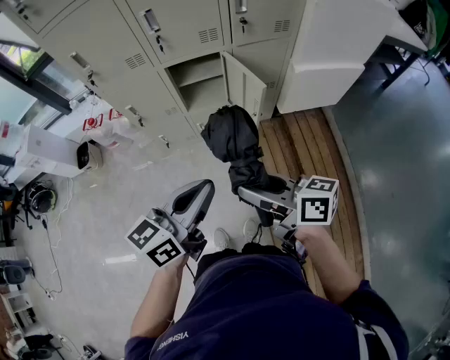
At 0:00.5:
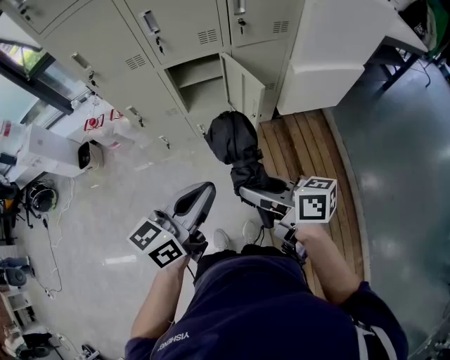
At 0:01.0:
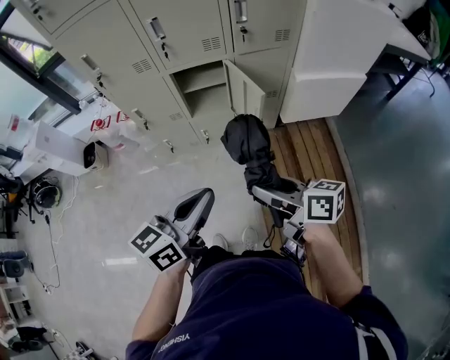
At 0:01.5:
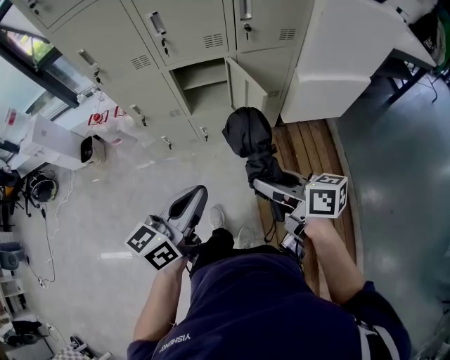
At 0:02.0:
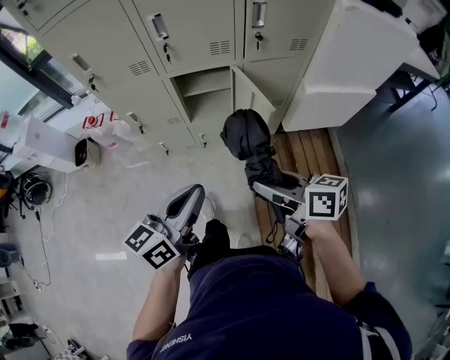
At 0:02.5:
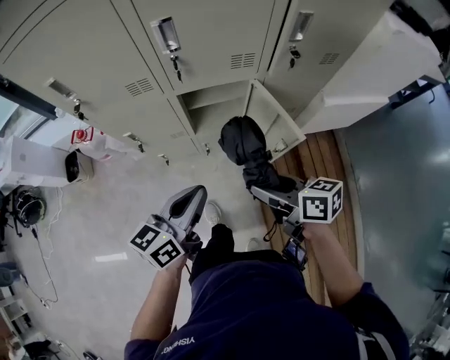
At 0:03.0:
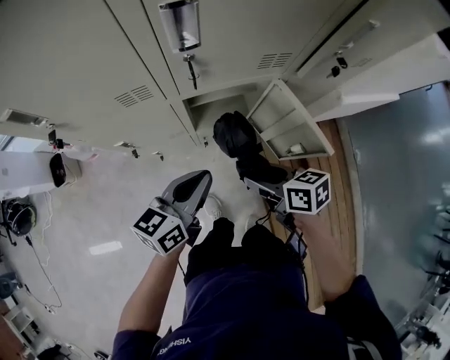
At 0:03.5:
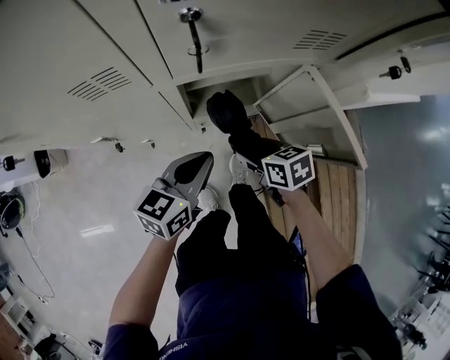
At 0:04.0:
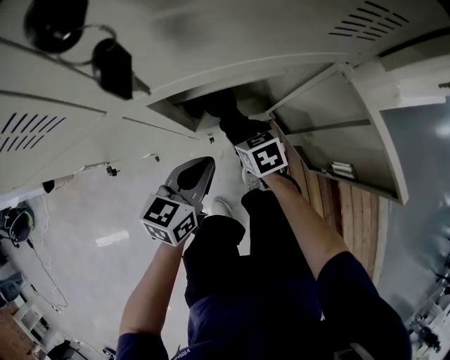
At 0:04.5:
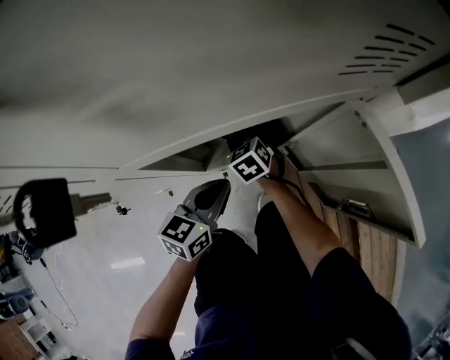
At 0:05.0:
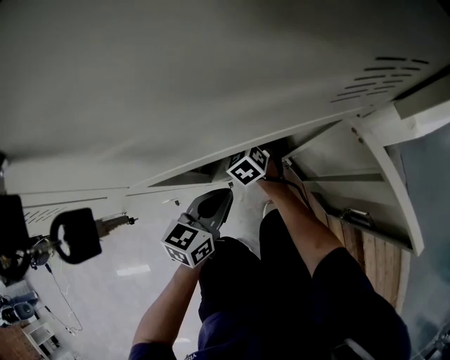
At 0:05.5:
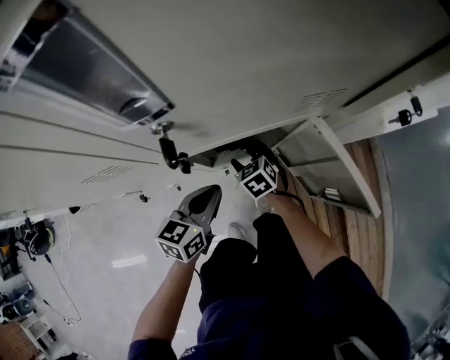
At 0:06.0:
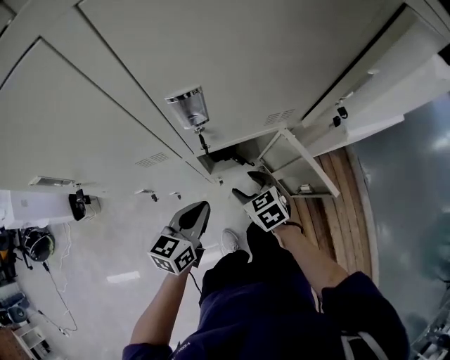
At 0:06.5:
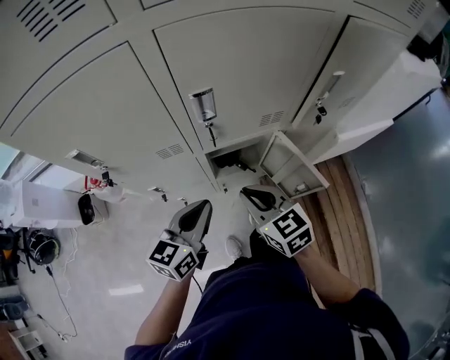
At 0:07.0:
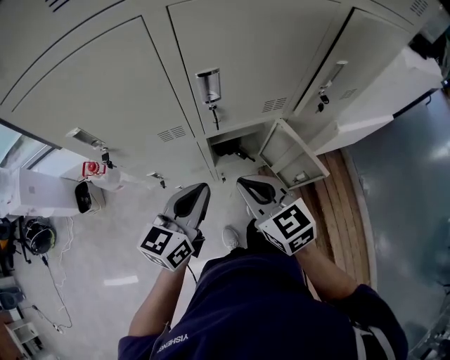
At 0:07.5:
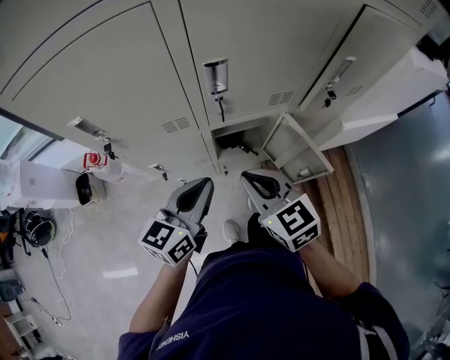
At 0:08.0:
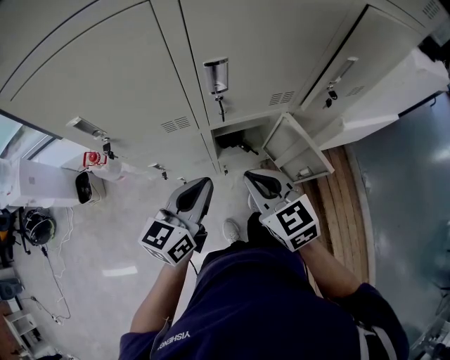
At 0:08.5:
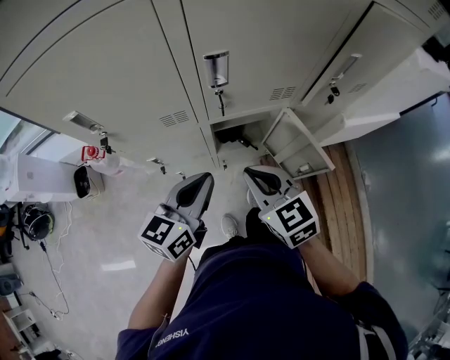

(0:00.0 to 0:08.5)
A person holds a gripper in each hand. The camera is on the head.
0:00.0 - 0:02.0: The right gripper travels forward and to the right by roughly 10 cm, while the left gripper shifts about 10 cm forward.
0:02.0 - 0:04.0: The two grippers go roughly 60 cm downward and forward. The left gripper turns by about 20 degrees; the right gripper tips its fingers downward by about 30 degrees.
0:04.0 - 0:06.5: Both grippers travel together upward, some 40 cm. The right gripper turns by some 30 degrees, and closes.
0:06.5 - 0:08.5: The grippers stay close to where they were, moving slightly.

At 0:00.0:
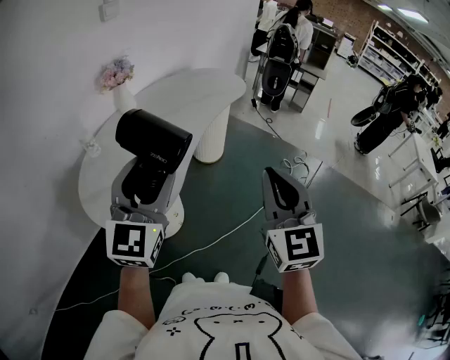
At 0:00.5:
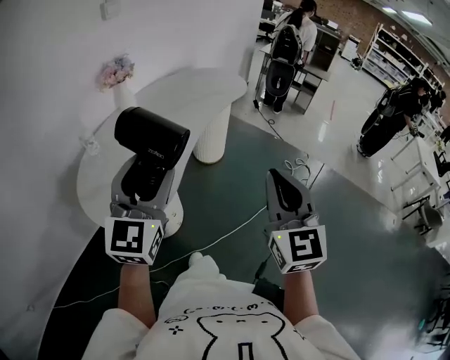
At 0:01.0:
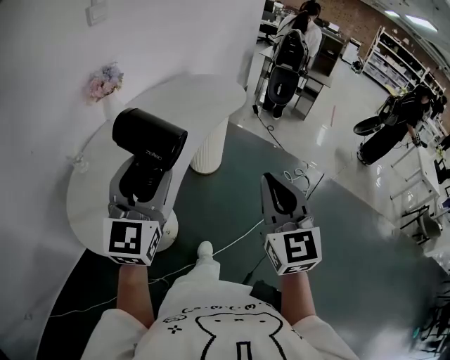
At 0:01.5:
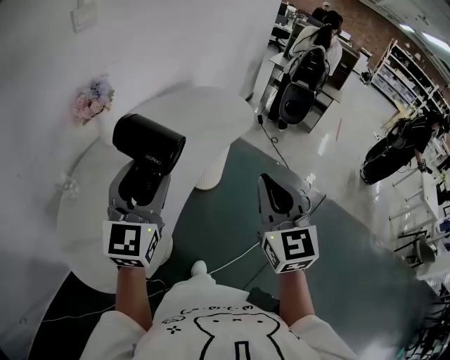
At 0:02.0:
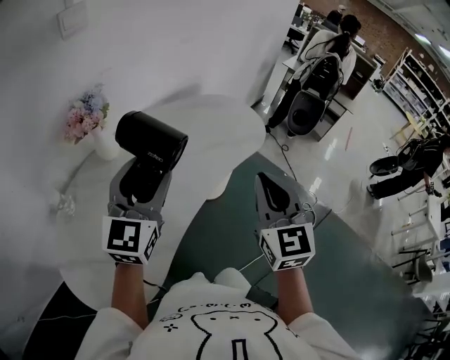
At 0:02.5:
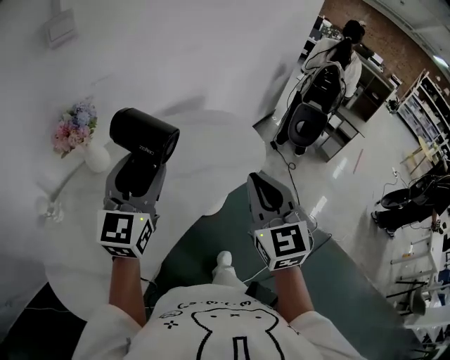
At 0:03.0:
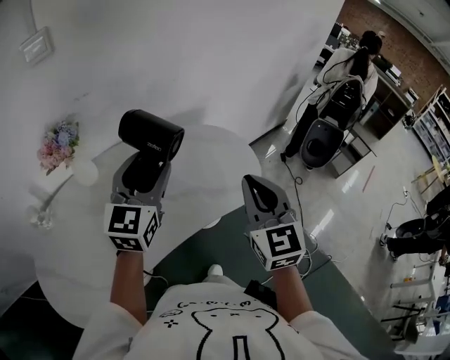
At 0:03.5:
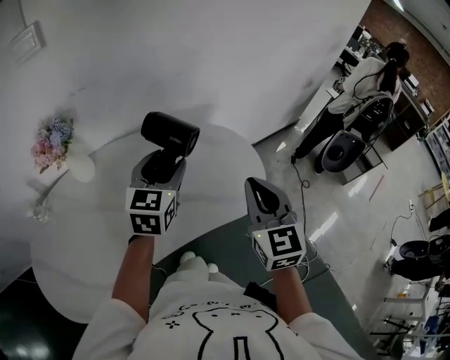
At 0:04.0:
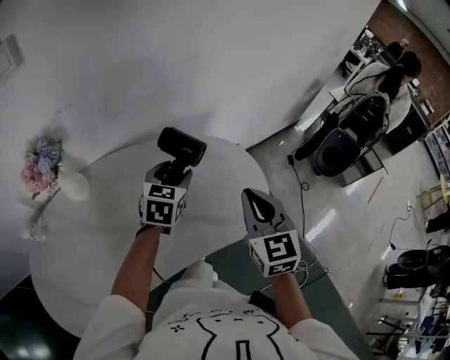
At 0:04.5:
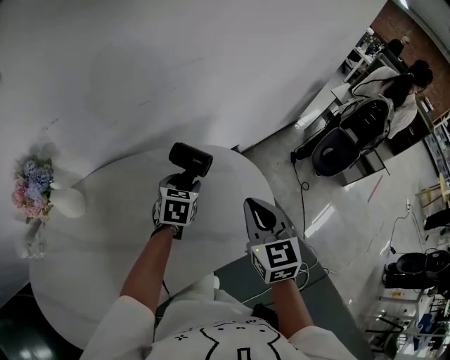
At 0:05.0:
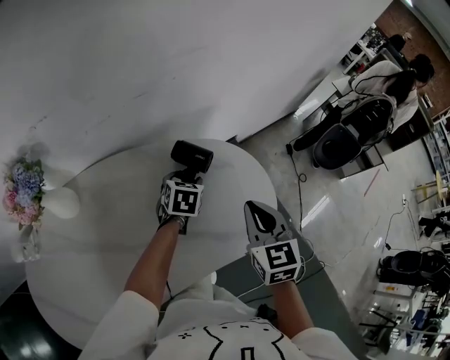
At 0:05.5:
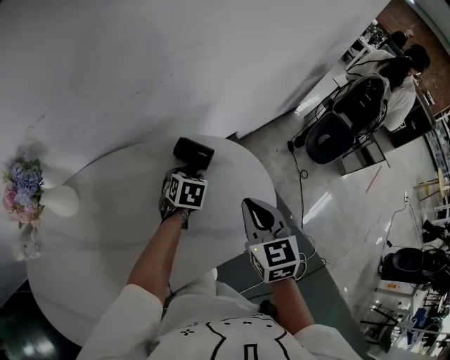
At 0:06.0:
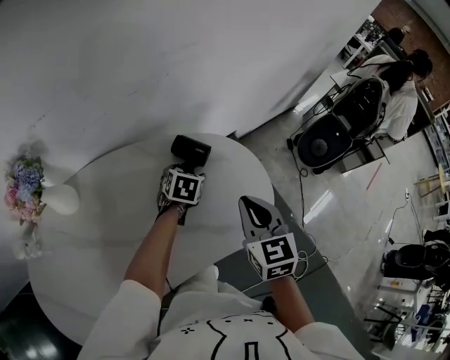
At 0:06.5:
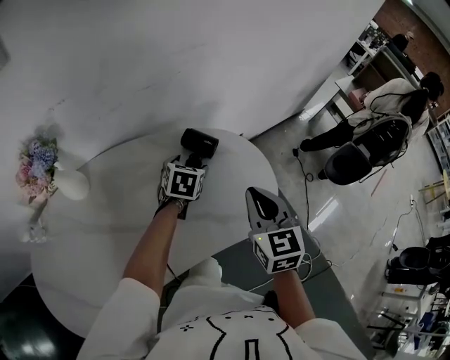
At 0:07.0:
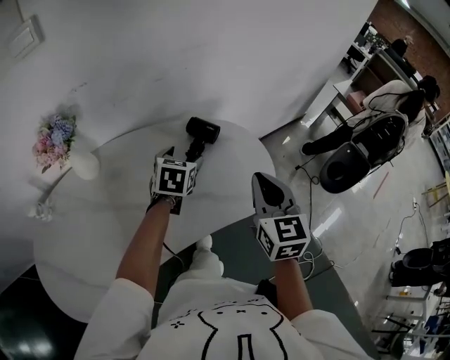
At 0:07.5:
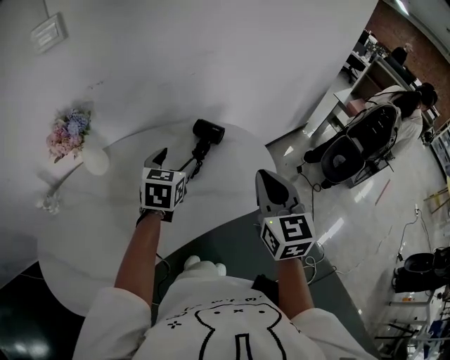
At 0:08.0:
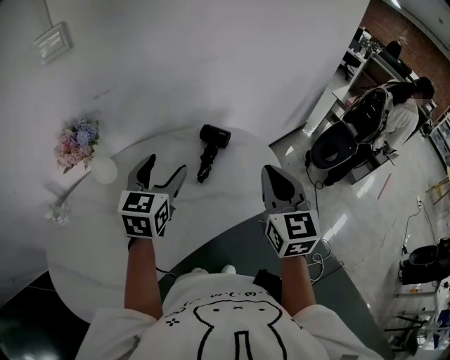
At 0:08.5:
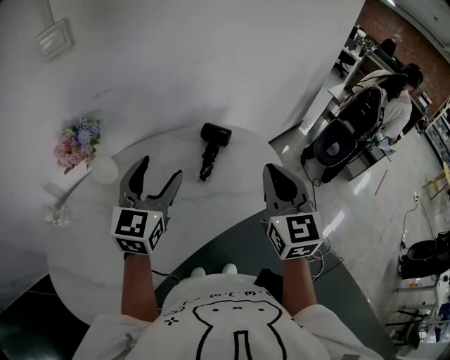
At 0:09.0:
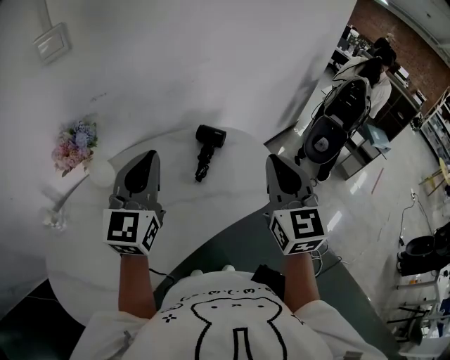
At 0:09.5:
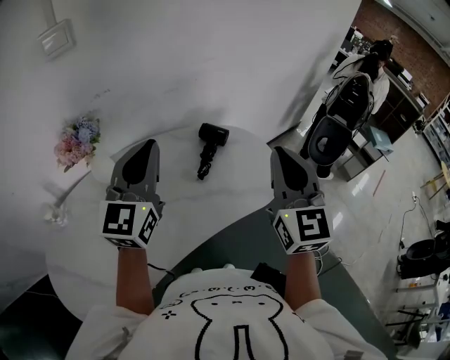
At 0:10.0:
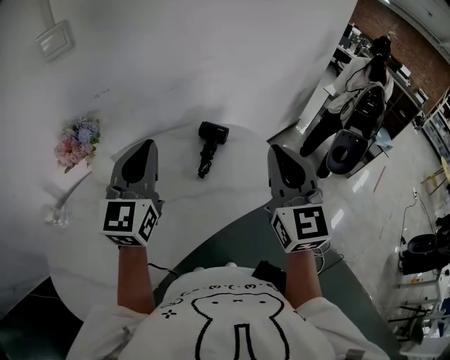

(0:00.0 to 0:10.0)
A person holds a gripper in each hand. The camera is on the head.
0:00.0 - 0:02.0: Both grippers are carried forward, some 40 cm.
0:02.0 - 0:04.0: The right gripper heads forward, covering roughly 35 cm, and turns by approximately 20 degrees. Meanwhile the left gripper is displaced forward, downward and to the right by approximately 40 cm, and tips its fingers downward by some 30 degrees.
0:04.0 - 0:06.0: The right gripper travels downward by approximately 5 cm. Meanwhile the left gripper shifts roughly 15 cm downward and forward, and rotates approximately 20 degrees.
0:06.0 - 0:08.0: The right gripper travels upward and backward by some 20 cm. Meanwhile the left gripper shifts approximately 35 cm upward, backward and to the left, and points its fingers about 40 degrees further upward.
0:08.0 - 0:10.0: The grippers both shift upward by approximately 10 cm. The left gripper swivels approximately 20 degrees, and closes up.

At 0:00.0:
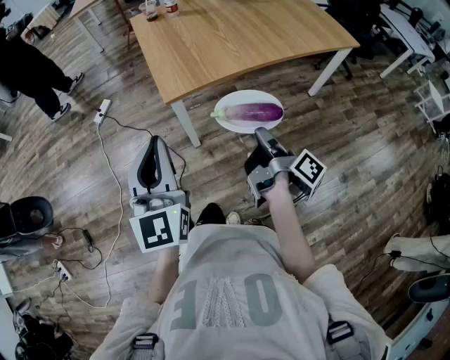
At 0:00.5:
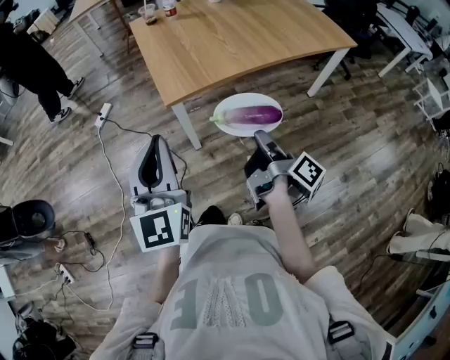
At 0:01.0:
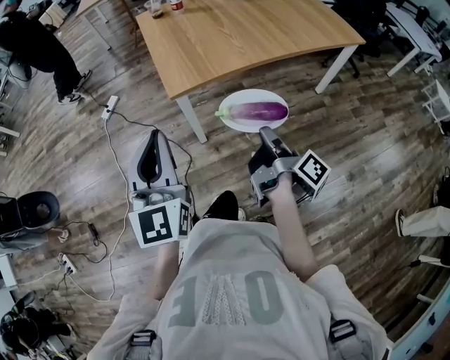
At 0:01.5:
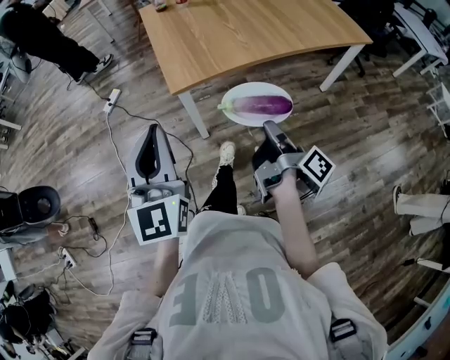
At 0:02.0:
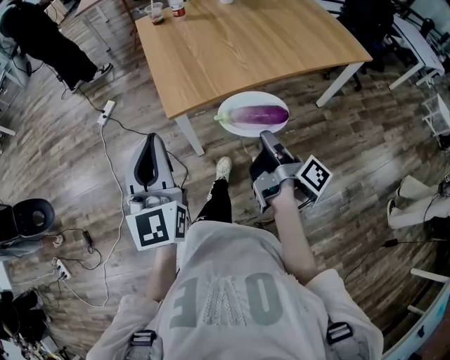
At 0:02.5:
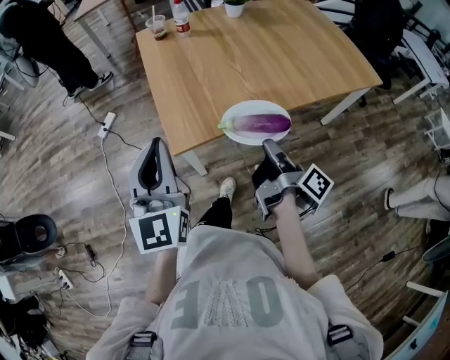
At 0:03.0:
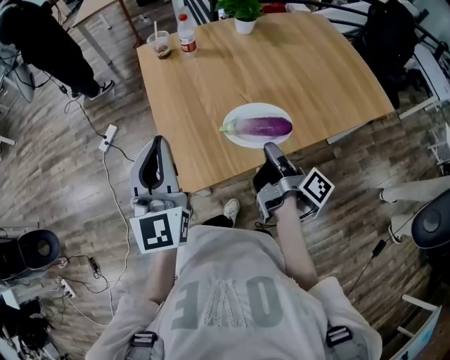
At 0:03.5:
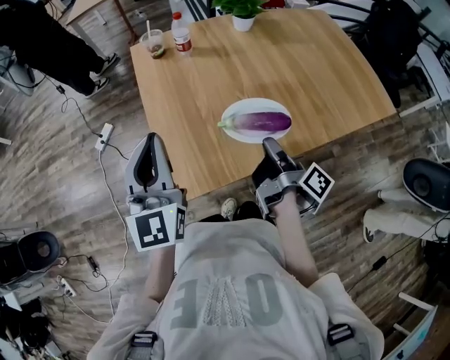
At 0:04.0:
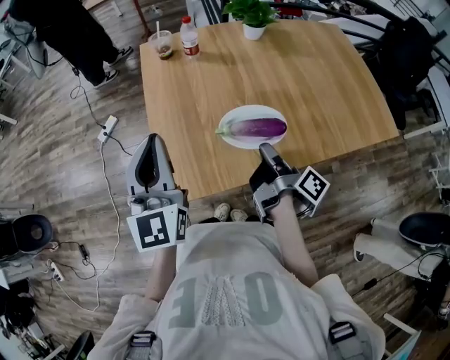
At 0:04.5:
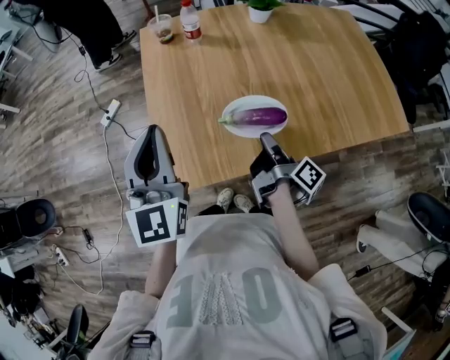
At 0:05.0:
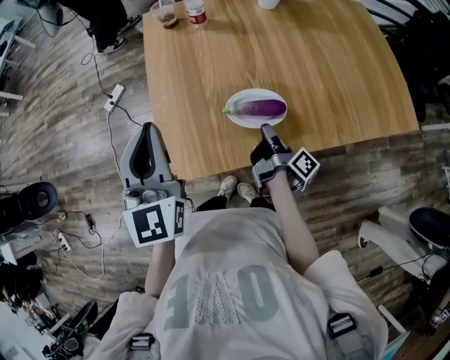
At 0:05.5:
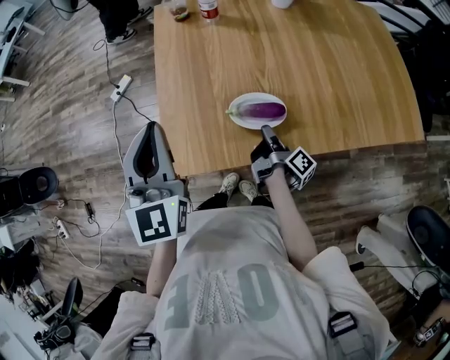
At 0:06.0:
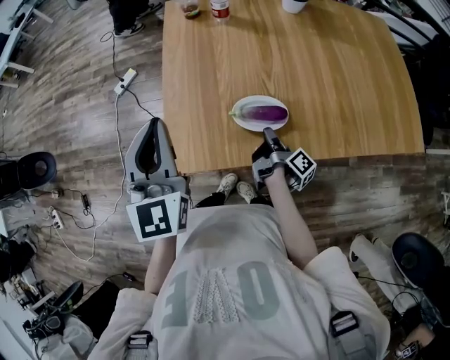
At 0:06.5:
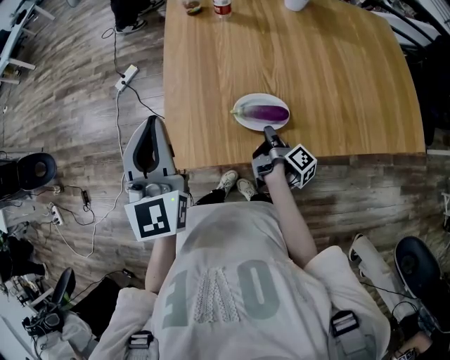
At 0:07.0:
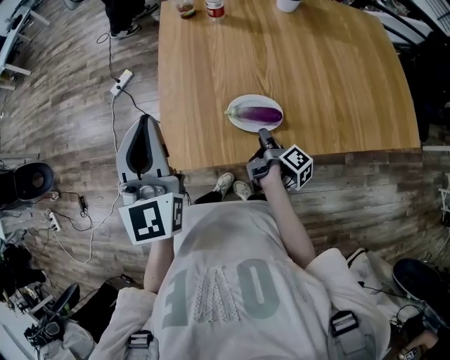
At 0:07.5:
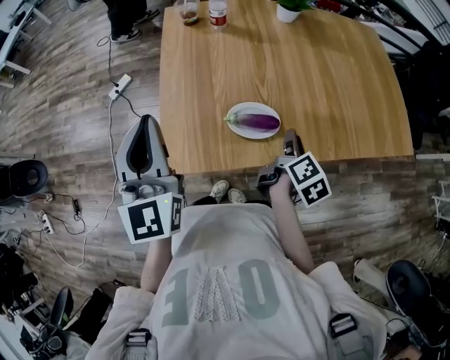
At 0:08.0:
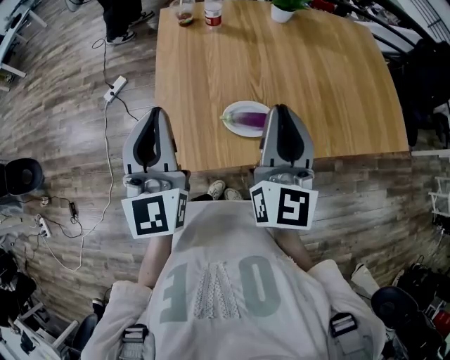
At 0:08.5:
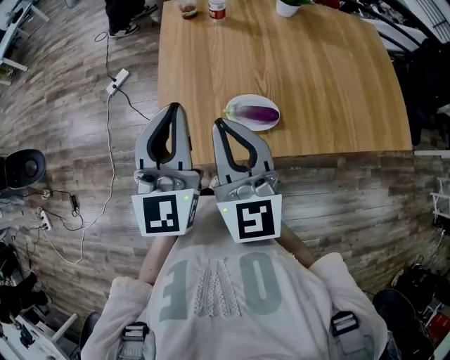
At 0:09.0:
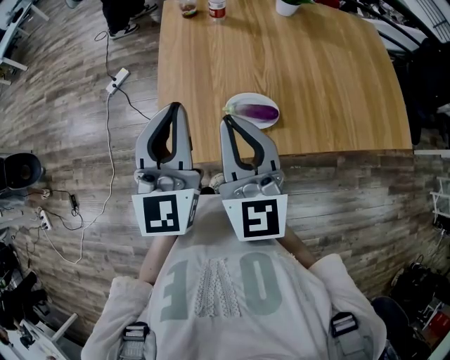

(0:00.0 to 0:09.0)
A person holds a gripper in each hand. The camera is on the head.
0:00.0 - 0:02.0: The left gripper ends up some 5 cm from where it was.
0:02.0 - 0:04.5: The left gripper shifts by about 30 cm.
